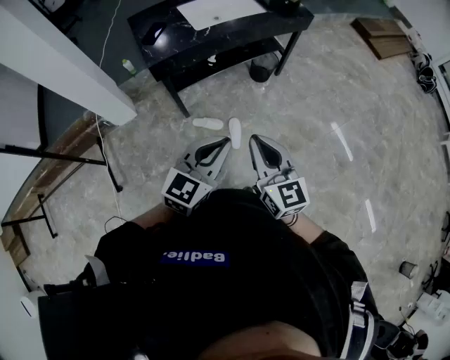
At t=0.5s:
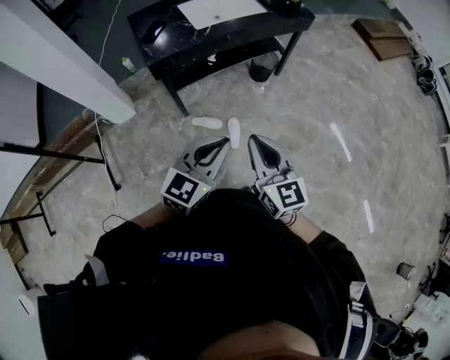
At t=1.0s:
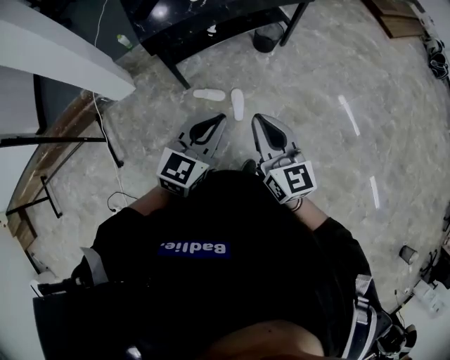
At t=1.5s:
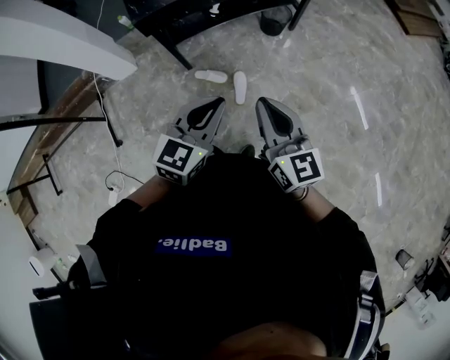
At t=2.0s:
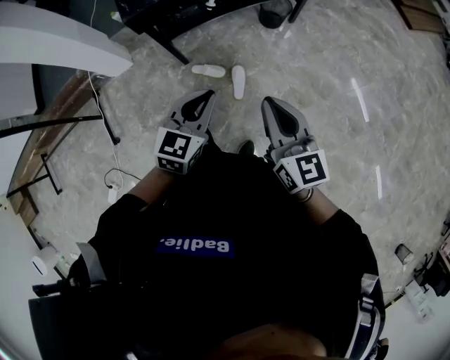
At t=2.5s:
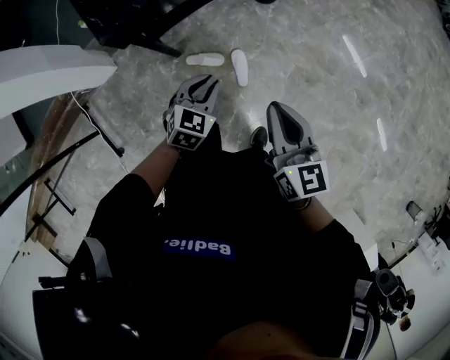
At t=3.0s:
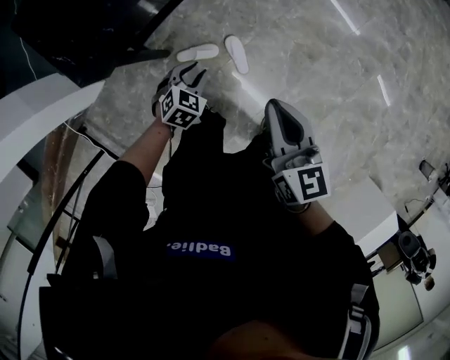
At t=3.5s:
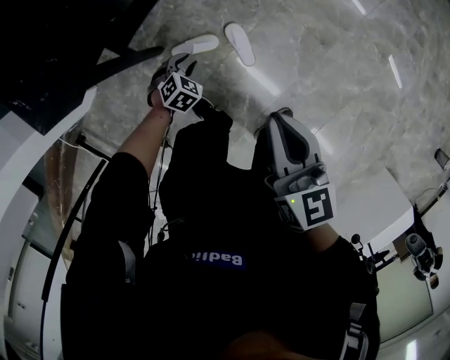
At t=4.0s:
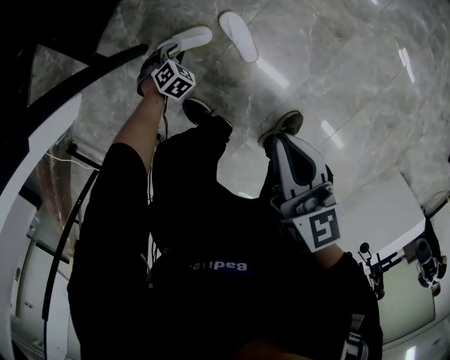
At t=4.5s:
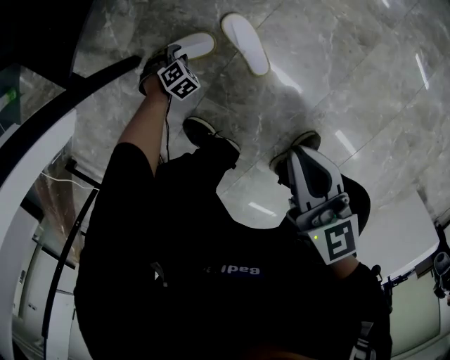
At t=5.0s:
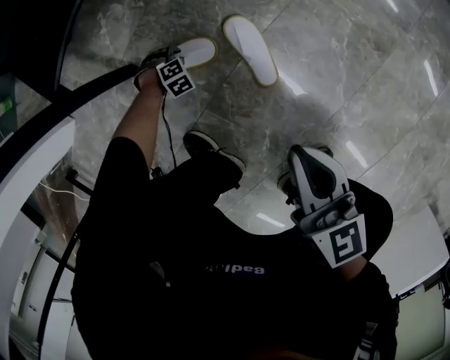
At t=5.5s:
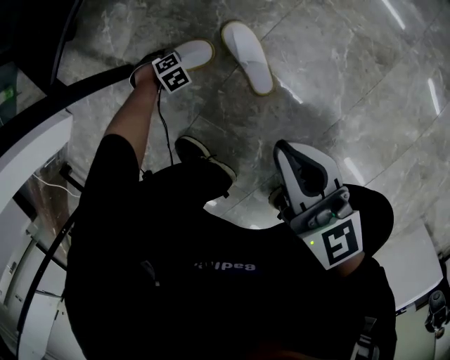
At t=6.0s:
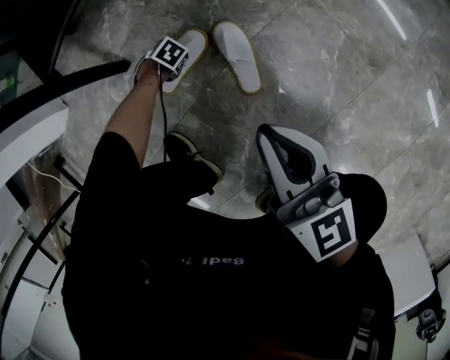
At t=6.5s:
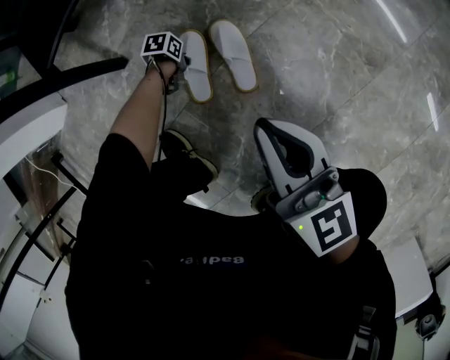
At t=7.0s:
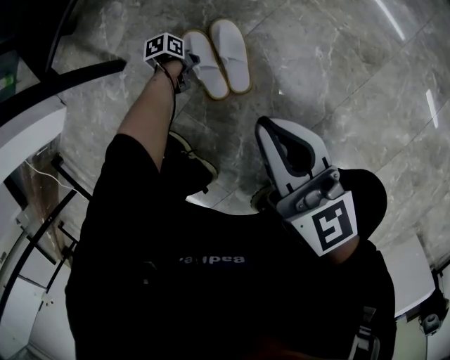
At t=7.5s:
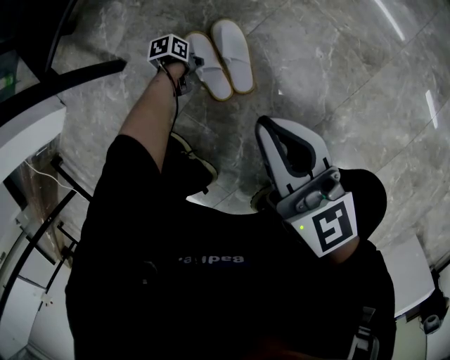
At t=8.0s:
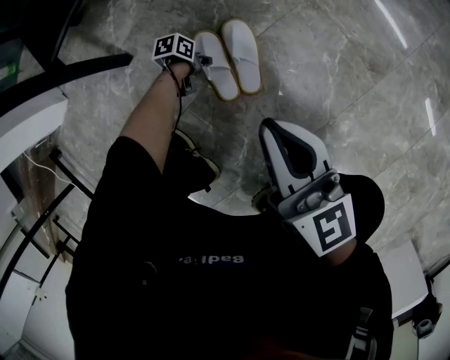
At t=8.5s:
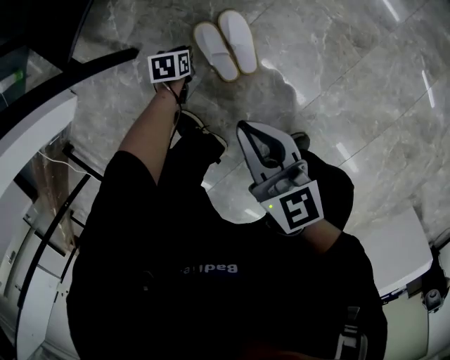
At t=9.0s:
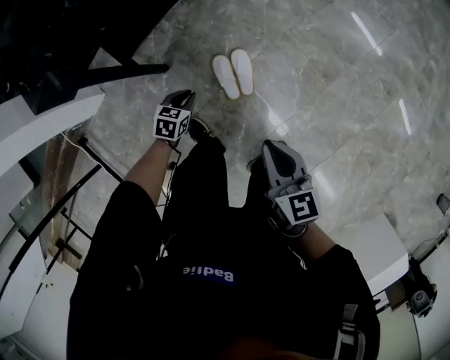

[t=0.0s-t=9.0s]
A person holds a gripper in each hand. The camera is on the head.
t=0.0s to t=2.0s: The left gripper is displaced downward and forward by about 15 cm. Meanwhile the right gripper heads to the right, forward and downward, covering approximately 15 cm.
t=2.0s to t=4.5s: The right gripper goes about 60 cm downward, and changes its angle by approximately 40 degrees, while the left gripper travels downward by roughly 90 cm, angles its fingers downward, by approximately 60 degrees, and opens up.
t=4.5s to t=7.0s: The right gripper goes some 5 cm downward, and rotates about 20 degrees. The left gripper shifts by some 10 cm, and twists approximately 90 degrees counterclockwise, seen from behind.
t=7.0s to t=9.0s: The right gripper is displaced upward by about 30 cm; the left gripper heads upward, covering about 50 cm, and rotates around the line of its fingers by about 40 degrees, clockwise from behind.

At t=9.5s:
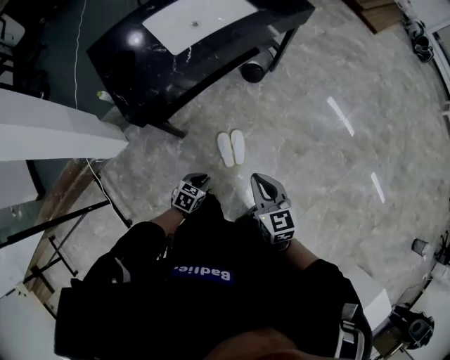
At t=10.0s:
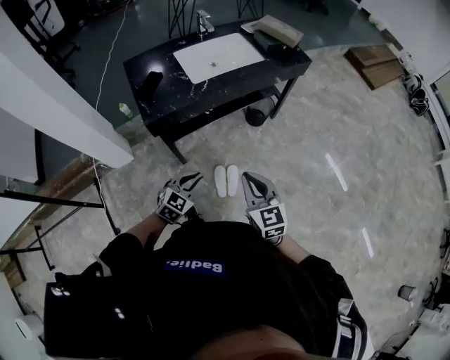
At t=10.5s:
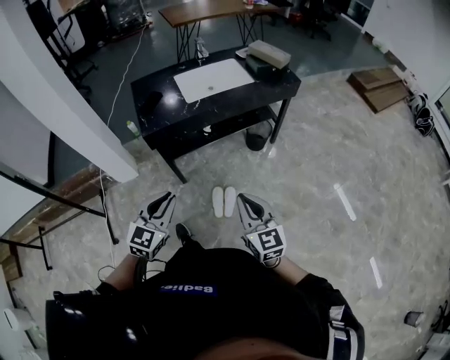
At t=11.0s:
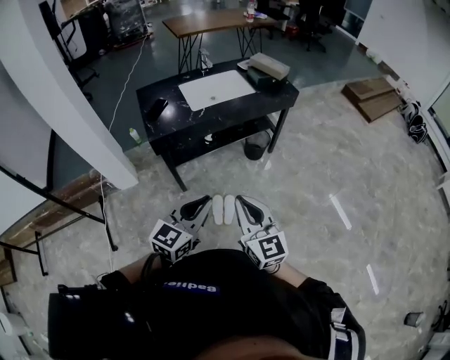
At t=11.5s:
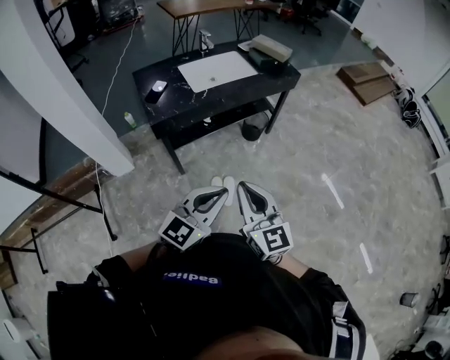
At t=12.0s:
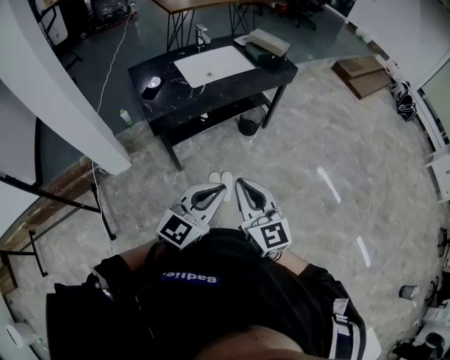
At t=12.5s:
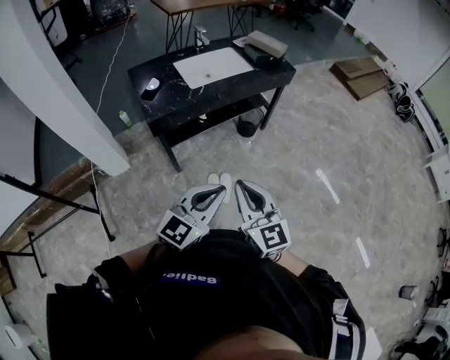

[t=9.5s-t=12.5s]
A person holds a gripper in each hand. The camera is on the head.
t=9.5s to t=11.0s: The left gripper is displaced upward by roughly 40 cm, and angles its fingers upward, by approximately 40 degrees, while the right gripper travels upward by approximately 20 cm, and changes its angle by some 30 degrees.
t=11.0s to t=12.5s: The right gripper is displaced to the left by some 5 cm.

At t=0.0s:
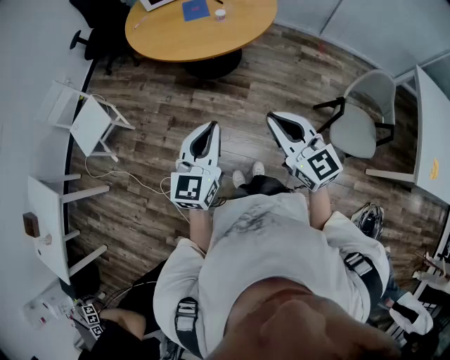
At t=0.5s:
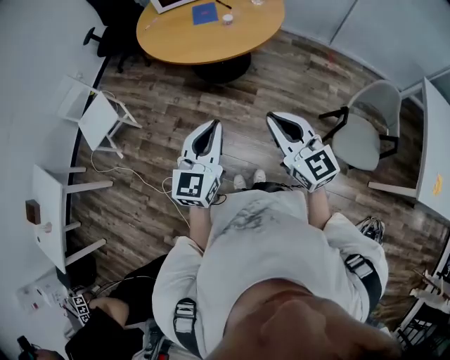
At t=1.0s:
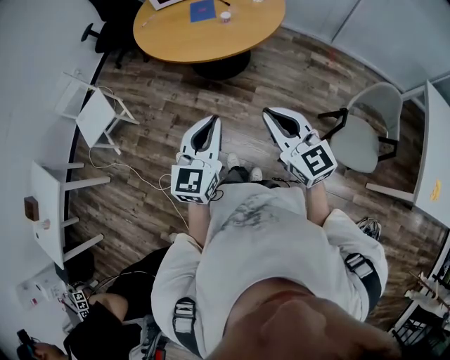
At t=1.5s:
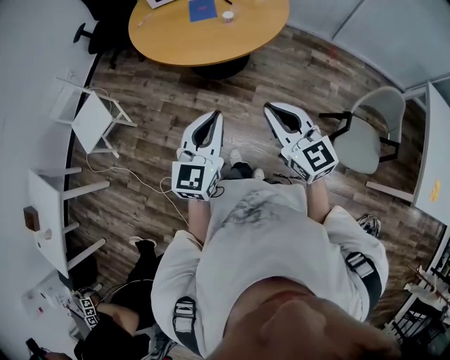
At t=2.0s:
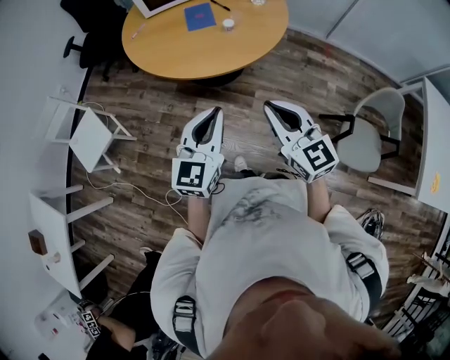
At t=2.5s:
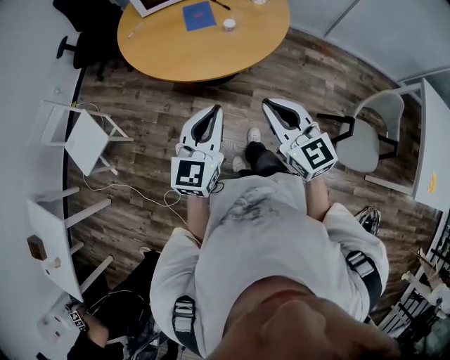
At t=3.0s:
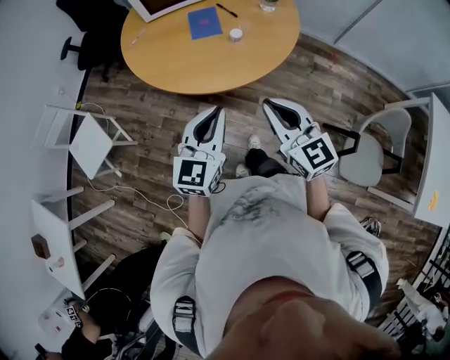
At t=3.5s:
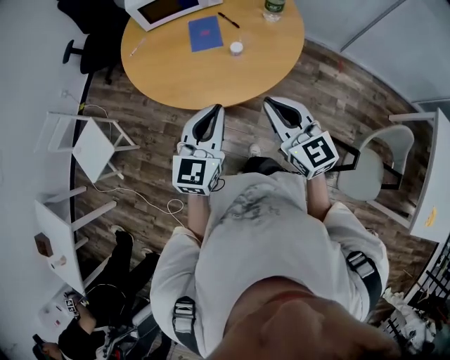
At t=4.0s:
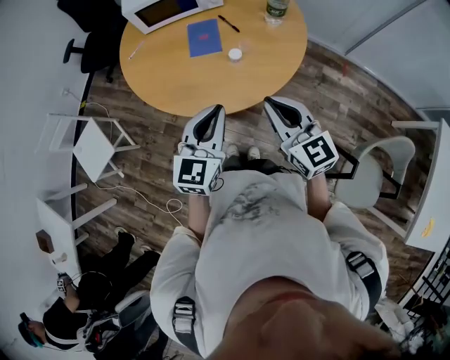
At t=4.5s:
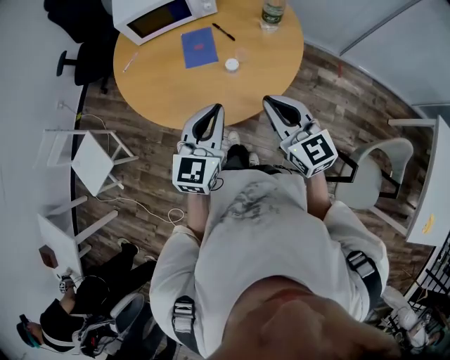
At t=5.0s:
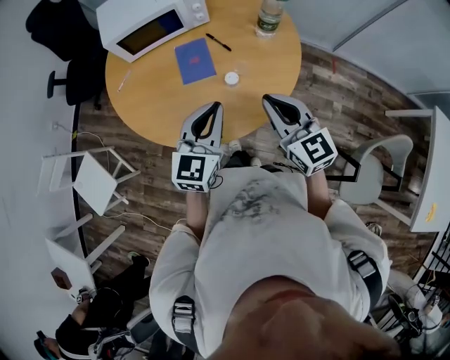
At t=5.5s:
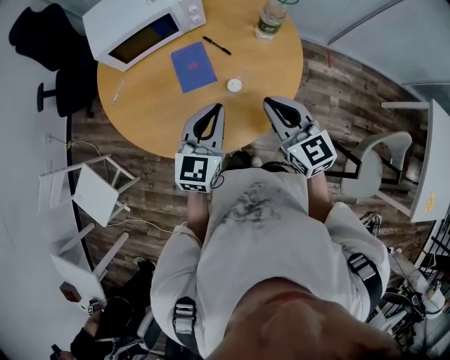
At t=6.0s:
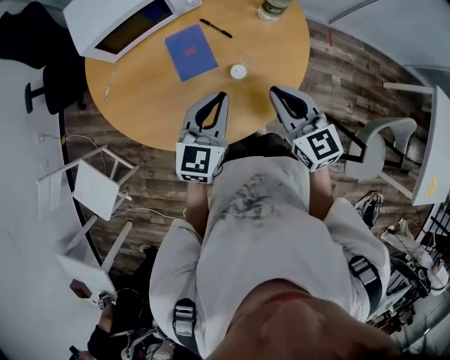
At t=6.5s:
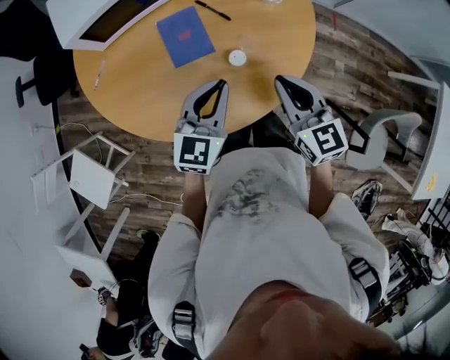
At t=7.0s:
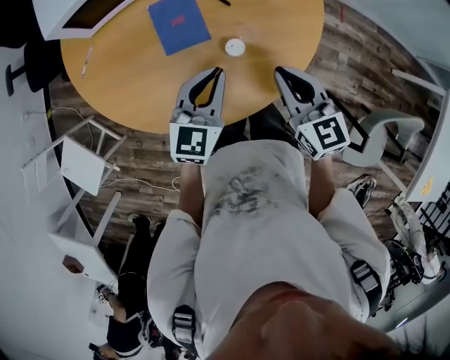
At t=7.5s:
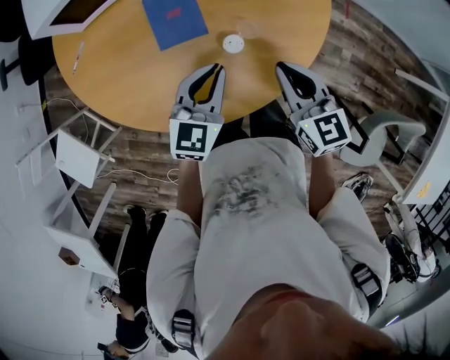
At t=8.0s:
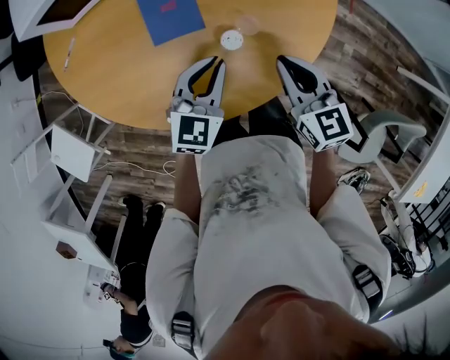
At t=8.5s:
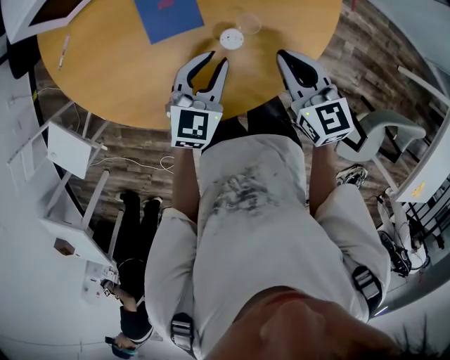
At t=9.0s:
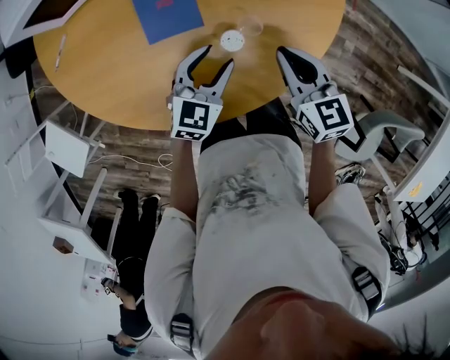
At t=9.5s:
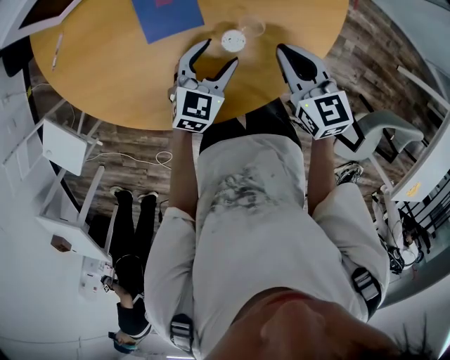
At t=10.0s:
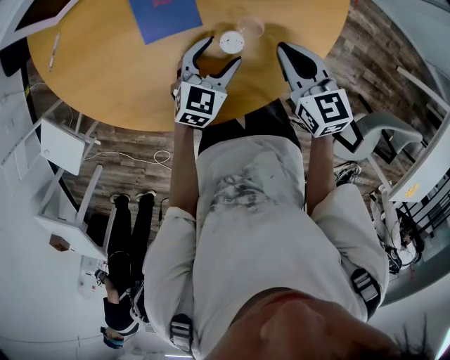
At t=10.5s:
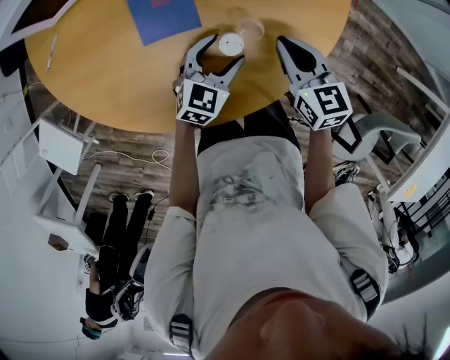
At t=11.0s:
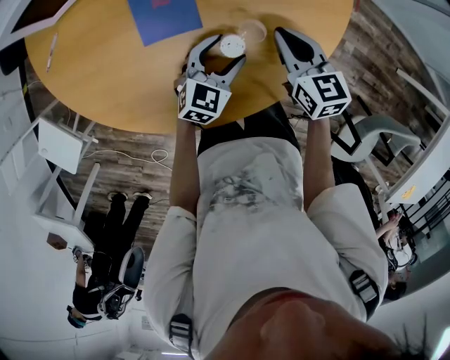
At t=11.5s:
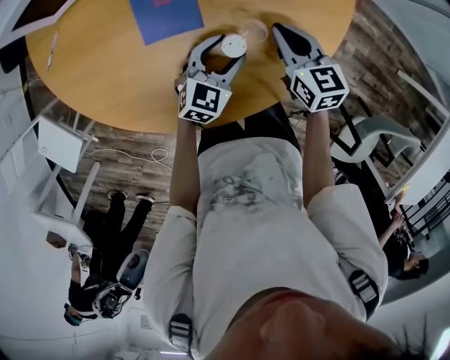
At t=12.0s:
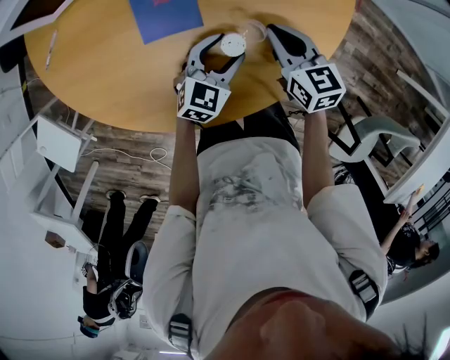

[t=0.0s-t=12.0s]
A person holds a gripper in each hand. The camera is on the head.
t=0.0s to t=2.0s: The two grippers go about 20 cm forward.
t=2.0s to t=4.0s: Both grippers move forward, about 25 cm.
t=4.0s to t=6.0s: The two grippers go roughly 20 cm forward and downward.
t=6.0s to t=8.0s: Both grippers move downward, about 15 cm.
t=8.0s to t=10.0s: The left gripper shifts some 10 cm downward, and opens its fingers. The right gripper shifts roughly 5 cm downward.
t=10.0s to t=12.0s: The right gripper shifts by roughly 5 cm.

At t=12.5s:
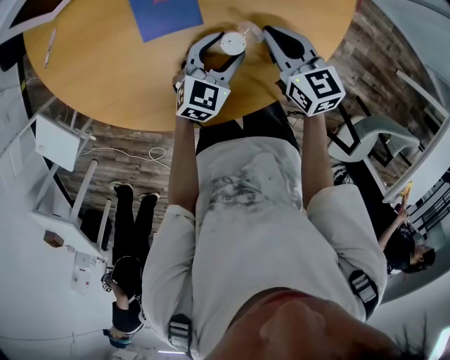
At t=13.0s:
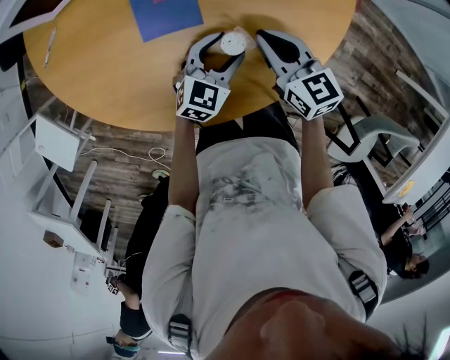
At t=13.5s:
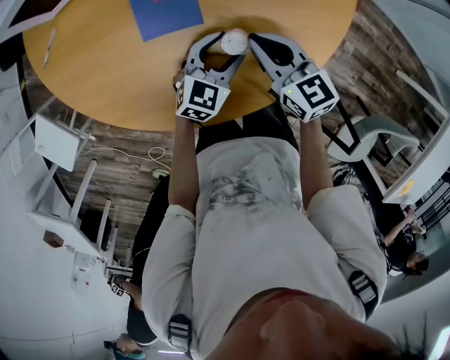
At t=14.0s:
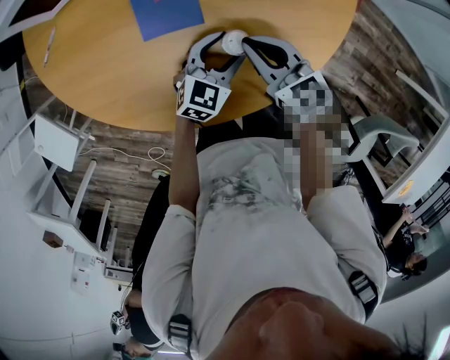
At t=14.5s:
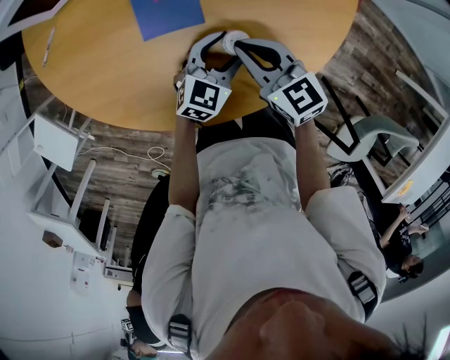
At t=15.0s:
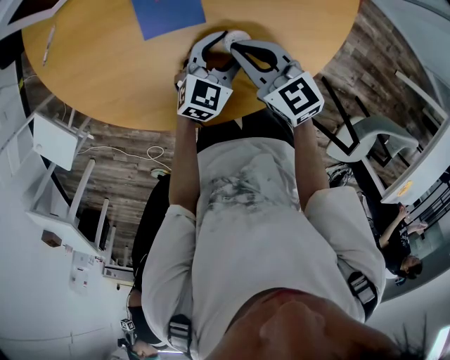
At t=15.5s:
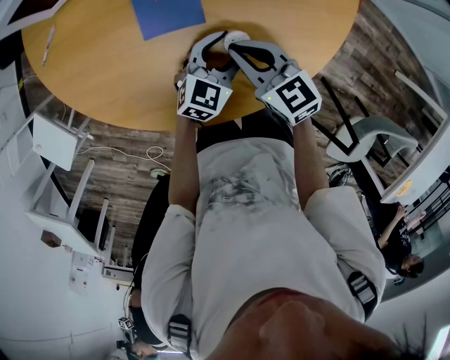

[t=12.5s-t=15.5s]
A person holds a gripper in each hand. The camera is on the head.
t=12.5s to t=14.0s: The right gripper heads to the left, covering approximately 5 cm.
t=14.0s to t=15.5s: The grippers stay close to where they were, moving slightly.
